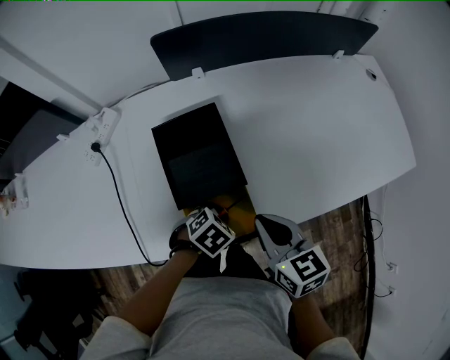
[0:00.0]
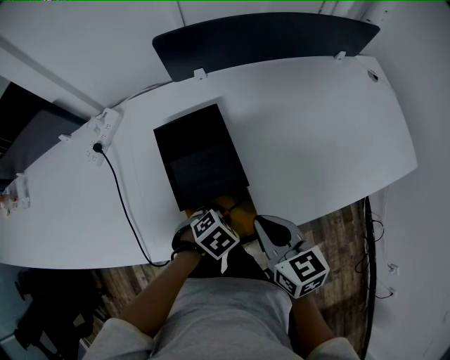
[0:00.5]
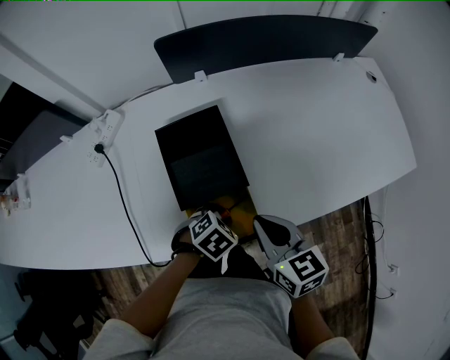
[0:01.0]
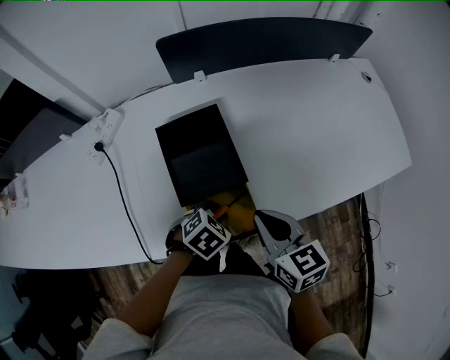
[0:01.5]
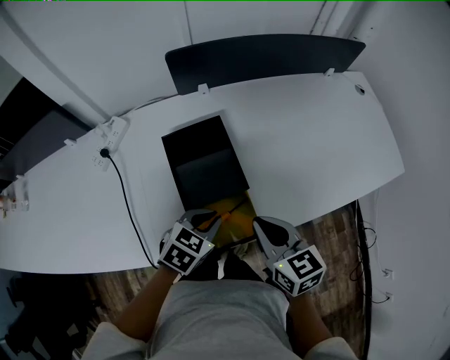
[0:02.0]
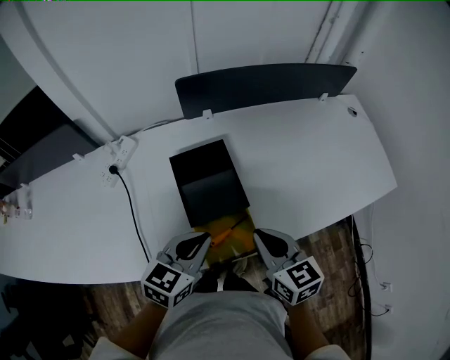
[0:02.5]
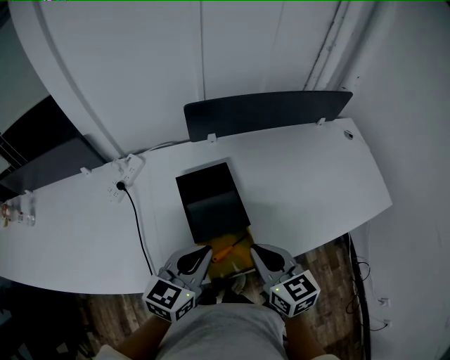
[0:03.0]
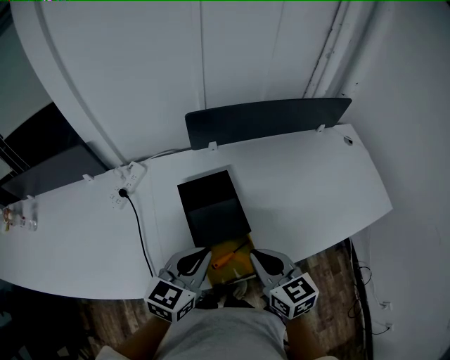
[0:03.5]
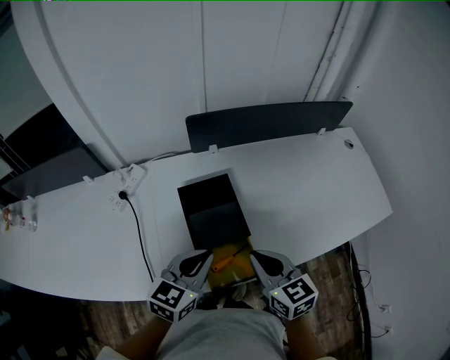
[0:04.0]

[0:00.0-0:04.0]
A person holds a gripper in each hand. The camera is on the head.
0:00.0 to 0:02.0: The left gripper moves upward, some 10 cm, and swivels approximately 30 degrees.
0:02.0 to 0:04.0: The right gripper moves upward, about 5 cm, while the left gripper shifts some 15 cm upward, and rotates roughly 30 degrees.

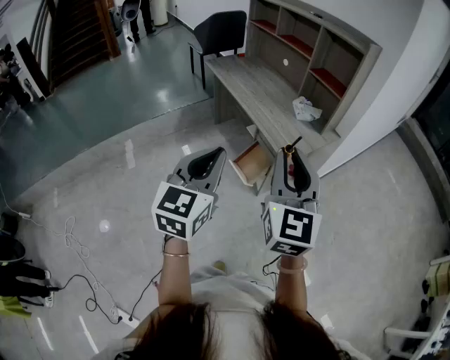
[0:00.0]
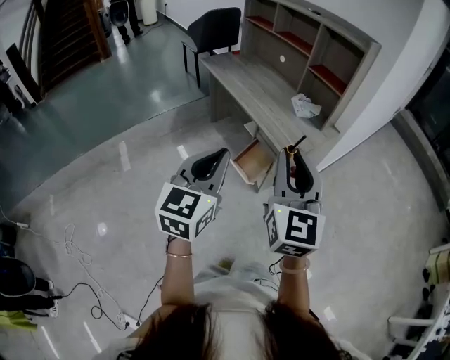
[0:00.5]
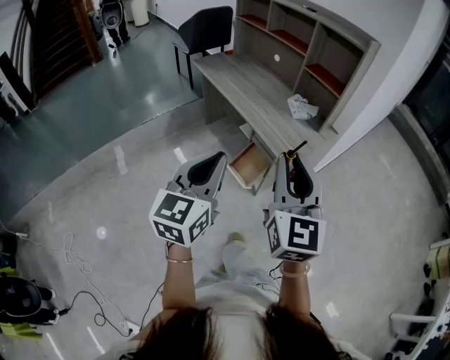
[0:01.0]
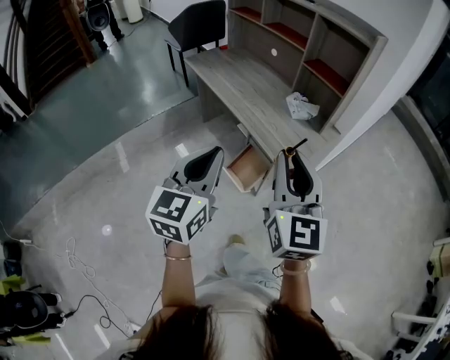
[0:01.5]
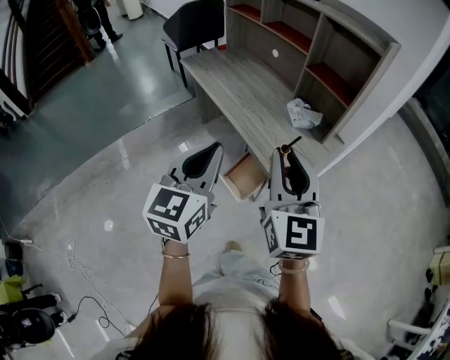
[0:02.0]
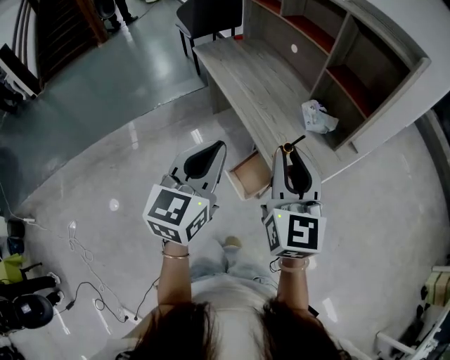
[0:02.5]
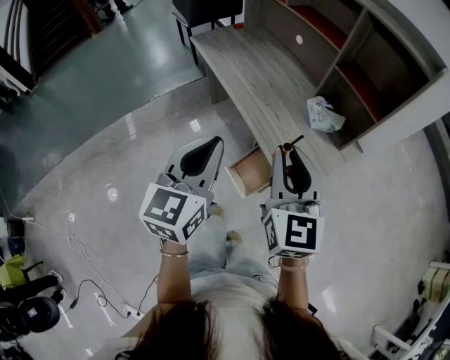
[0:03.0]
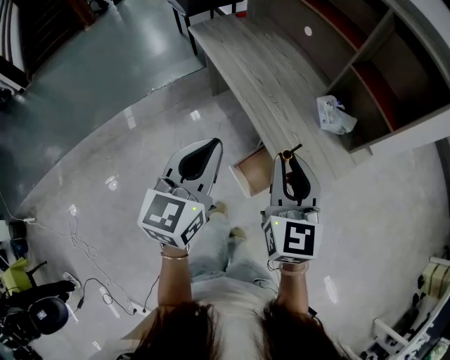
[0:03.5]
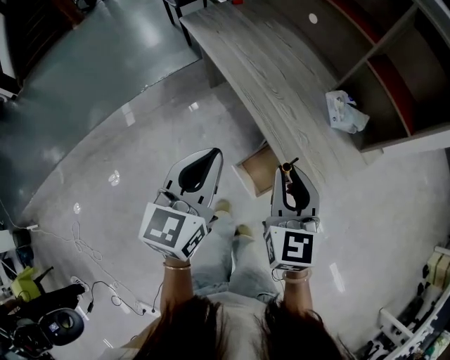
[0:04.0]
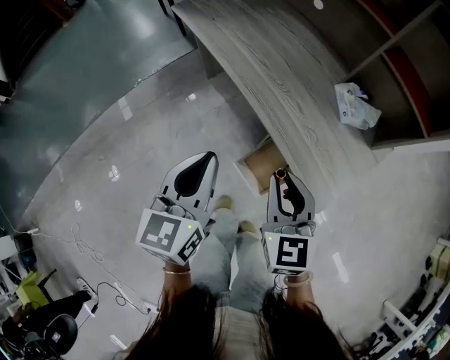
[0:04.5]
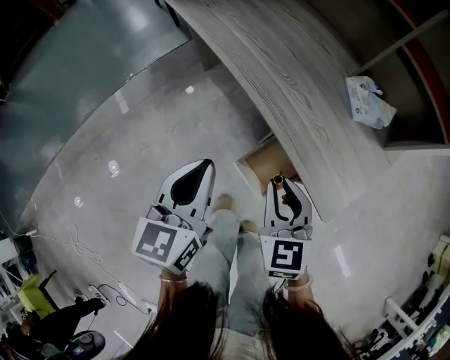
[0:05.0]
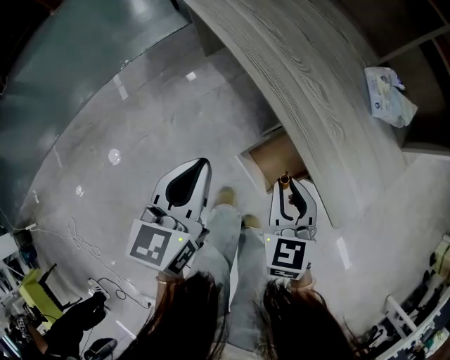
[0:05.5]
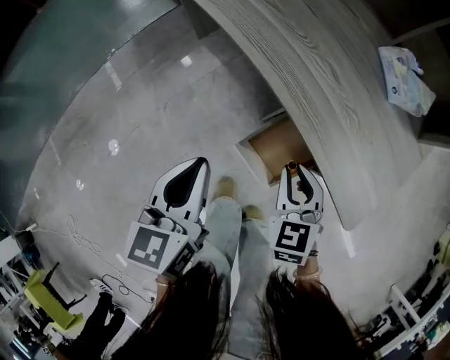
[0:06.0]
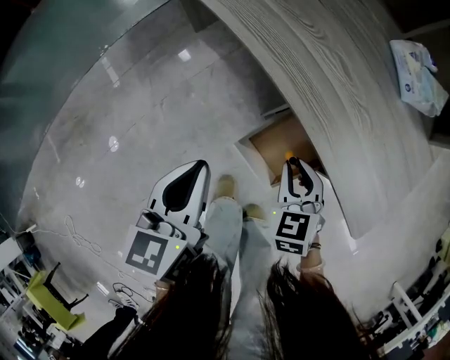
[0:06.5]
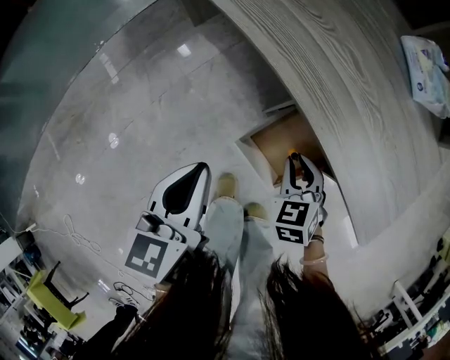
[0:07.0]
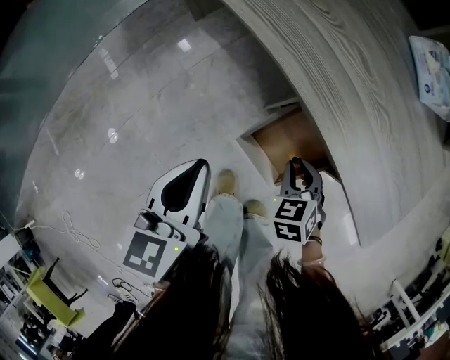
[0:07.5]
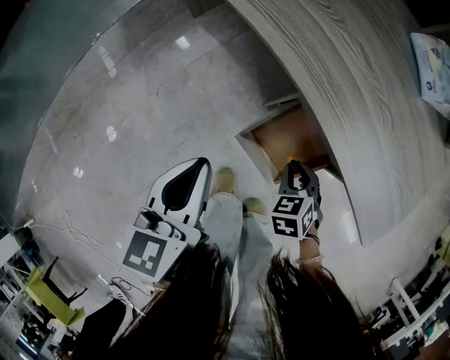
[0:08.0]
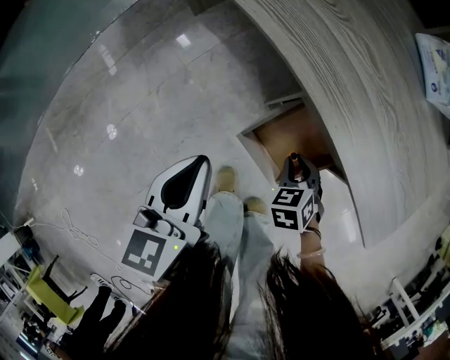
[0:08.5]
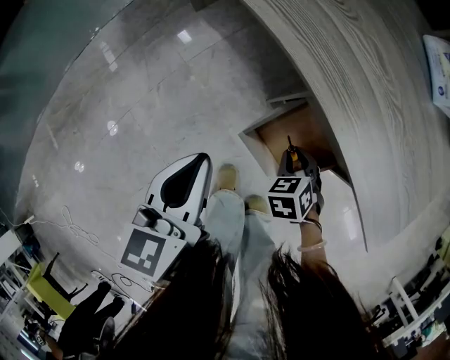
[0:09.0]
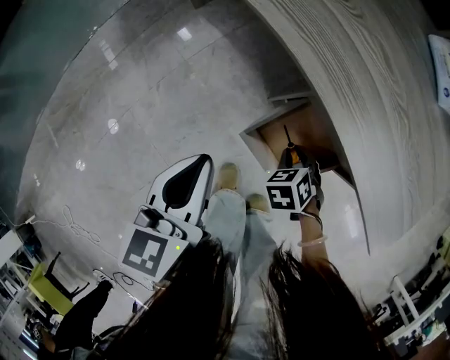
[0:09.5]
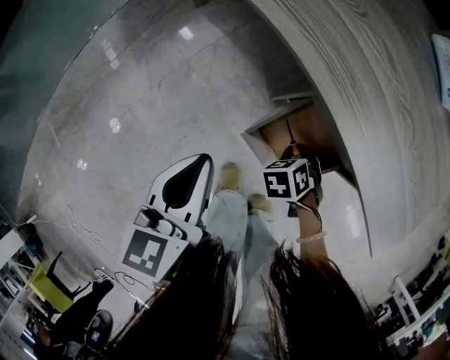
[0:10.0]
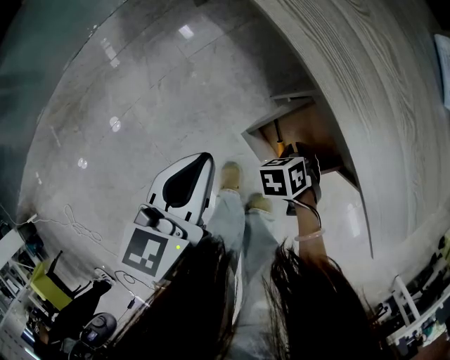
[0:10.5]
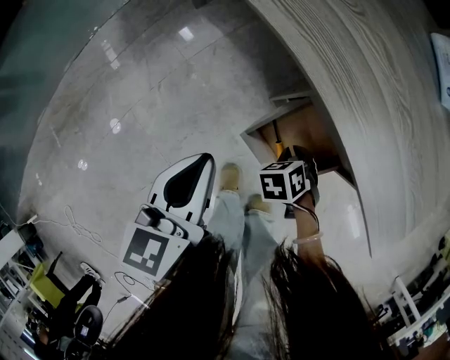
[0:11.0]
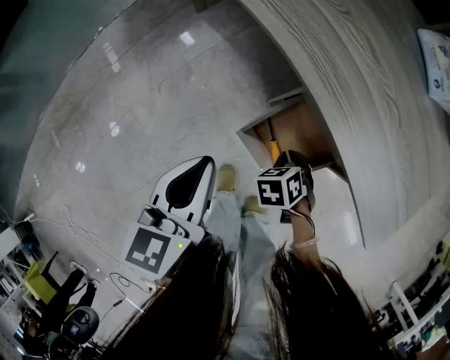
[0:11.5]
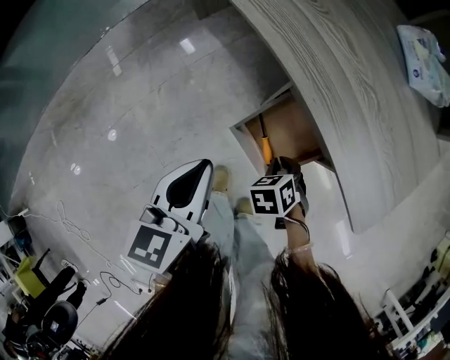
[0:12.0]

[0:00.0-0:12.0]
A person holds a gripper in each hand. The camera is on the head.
0:00.0 to 0:02.0: Both grippers travel together forward, about 20 cm.
0:02.0 to 0:04.0: The left gripper is displaced forward, downward and to the left by approximately 20 cm; the right gripper moves downward, forward and to the left, approximately 25 cm, and changes its angle by some 20 degrees.
0:04.0 to 0:06.0: The two grippers go some 30 cm downward. The right gripper changes its angle by approximately 30 degrees.
0:06.0 to 0:08.0: The left gripper travels downward by about 10 cm. The right gripper shifts approximately 20 cm downward, and swivels about 30 degrees.
0:08.0 to 0:10.0: The right gripper travels downward by some 5 cm.
0:10.0 to 0:12.0: The left gripper ends up some 5 cm from where it was, while the right gripper shifts by approximately 5 cm.

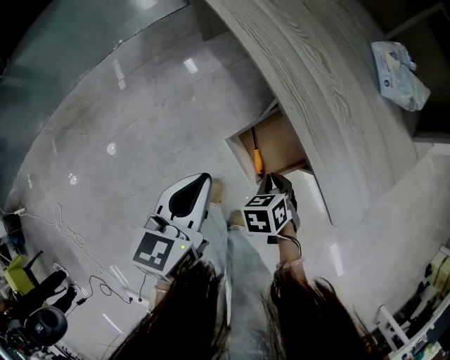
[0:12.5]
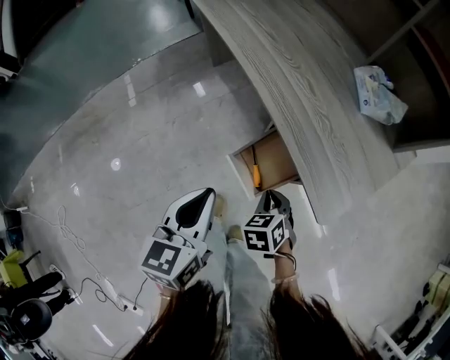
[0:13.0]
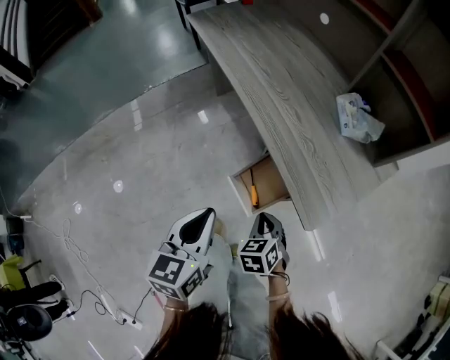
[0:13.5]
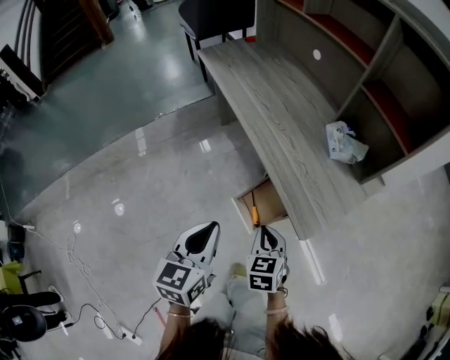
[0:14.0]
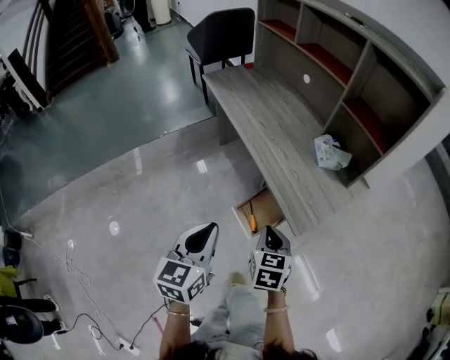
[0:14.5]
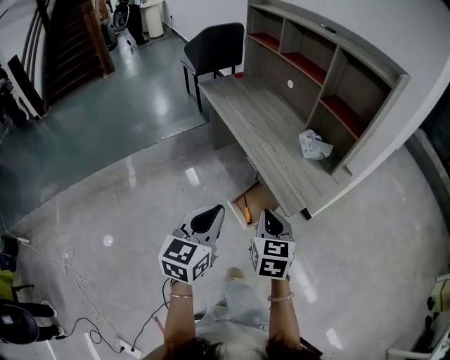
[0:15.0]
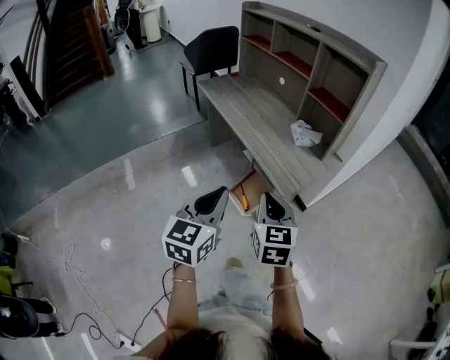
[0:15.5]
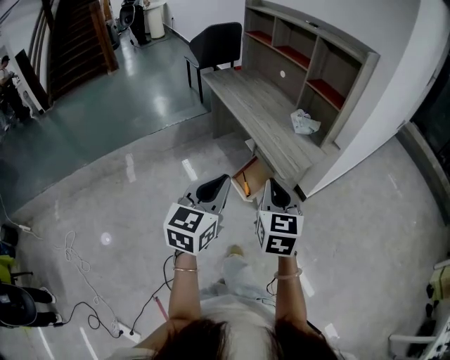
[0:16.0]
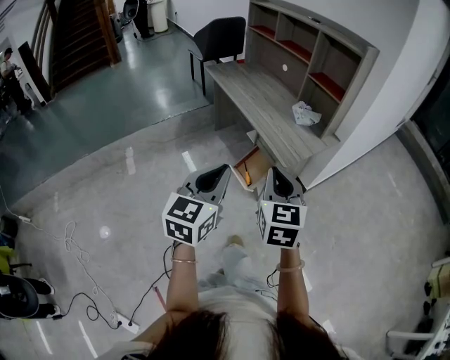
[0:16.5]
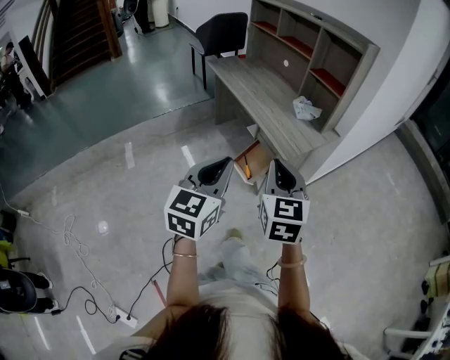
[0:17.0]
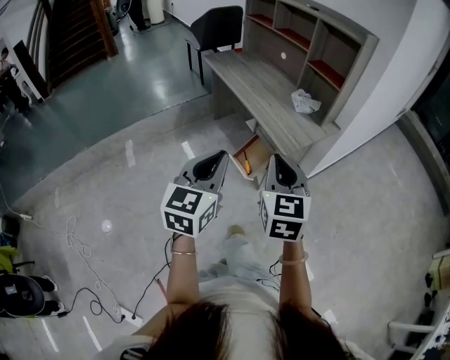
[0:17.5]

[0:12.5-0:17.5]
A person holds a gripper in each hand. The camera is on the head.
0:12.5 to 0:15.0: The left gripper heads upward and backward, covering approximately 35 cm, and turns by approximately 20 degrees. Meanwhile the right gripper moves upward, roughly 40 cm, and angles its fingers upward, by some 40 degrees.
0:15.0 to 0:17.5: The two grippers go approximately 20 cm backward and upward.

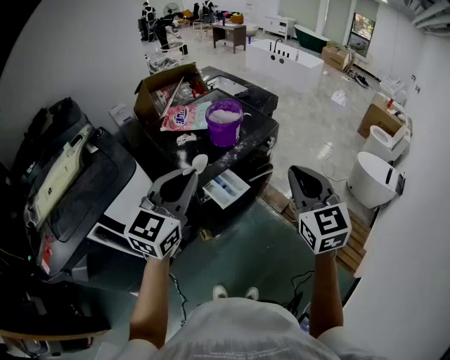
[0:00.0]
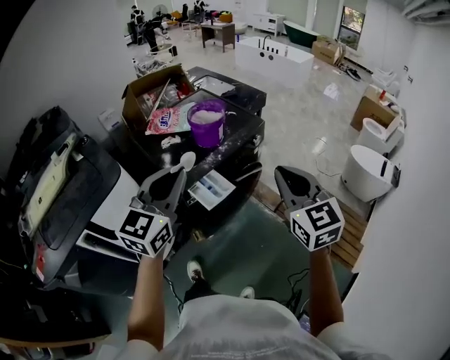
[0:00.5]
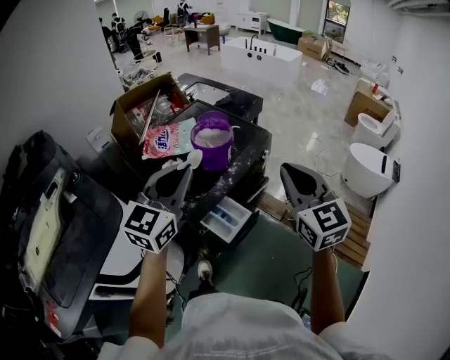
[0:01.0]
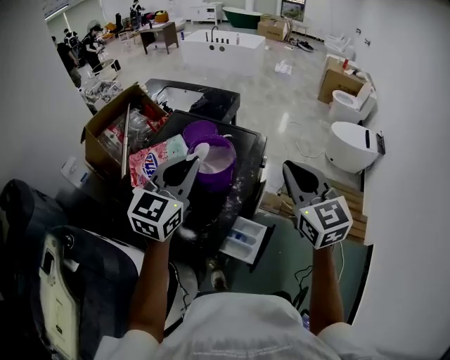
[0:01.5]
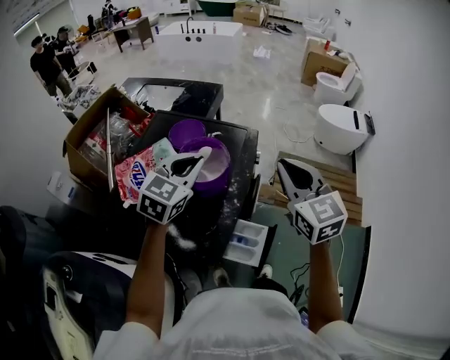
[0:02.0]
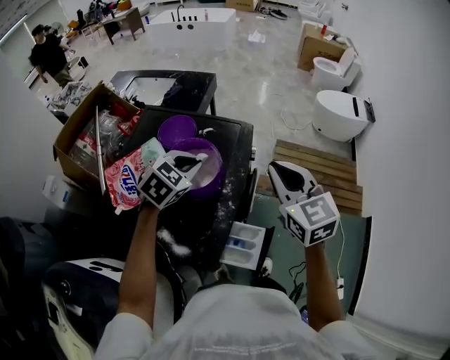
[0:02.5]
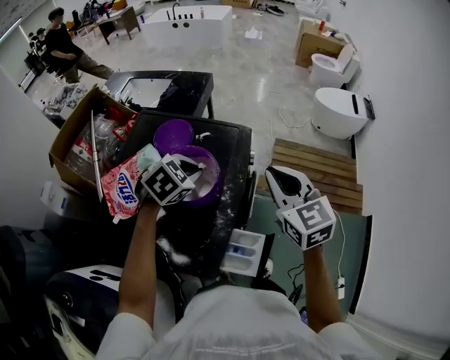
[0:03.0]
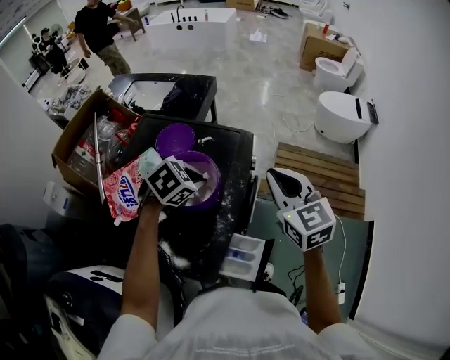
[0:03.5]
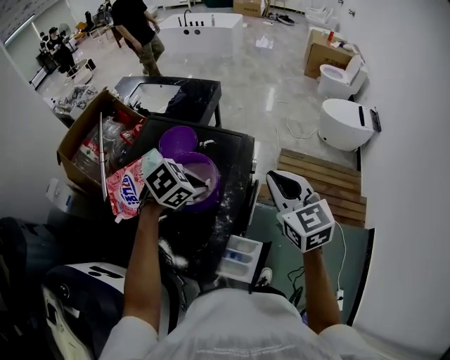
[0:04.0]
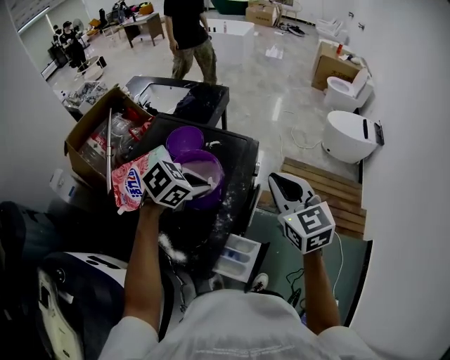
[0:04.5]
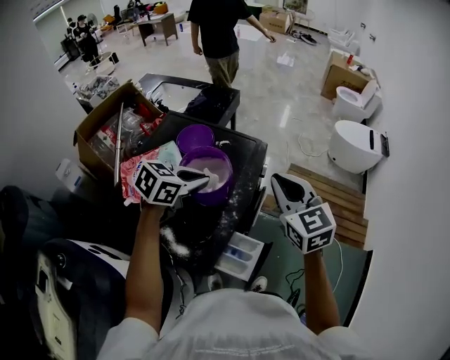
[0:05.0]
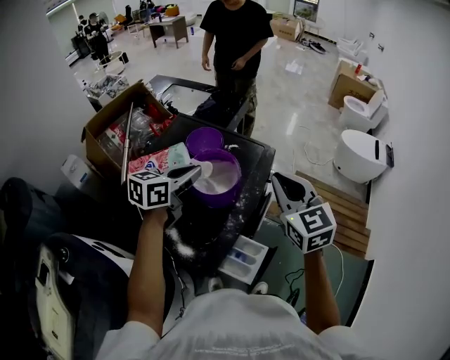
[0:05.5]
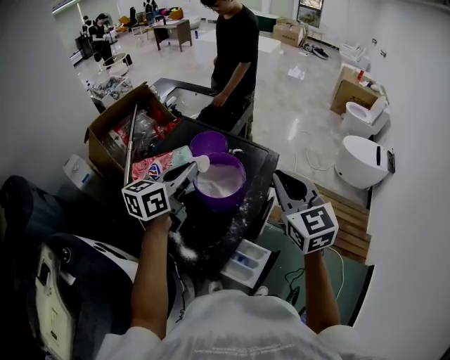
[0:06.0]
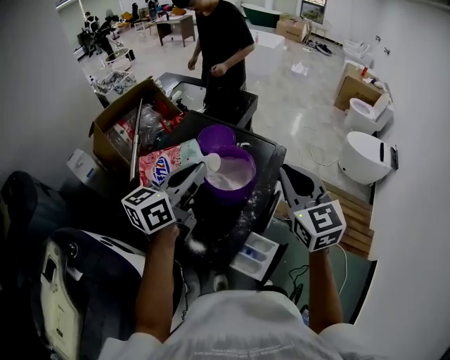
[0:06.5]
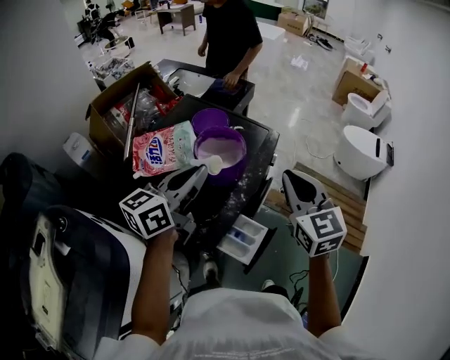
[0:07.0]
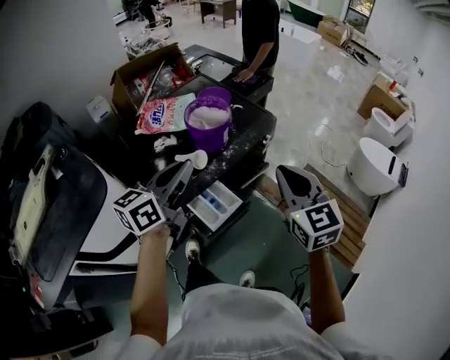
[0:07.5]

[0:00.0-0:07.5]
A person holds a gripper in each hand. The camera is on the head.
0:00.0 to 0:02.0: The right gripper moves approximately 30 cm, and swivels roughly 20 degrees. The left gripper shifts by roughly 40 cm, and swivels some 40 degrees.
0:02.0 to 0:04.0: The left gripper travels downward by approximately 10 cm, and tips its fingers downward by some 30 degrees; the right gripper travels forward by some 5 cm.
0:04.0 to 0:05.5: The left gripper goes about 10 cm to the left and upward, and tilts its fingers some 40 degrees upward. The right gripper shifts by approximately 5 cm.
0:05.5 to 0:07.5: Both grippers move backward and to the right, some 20 cm. The left gripper changes its angle by approximately 30 degrees.
